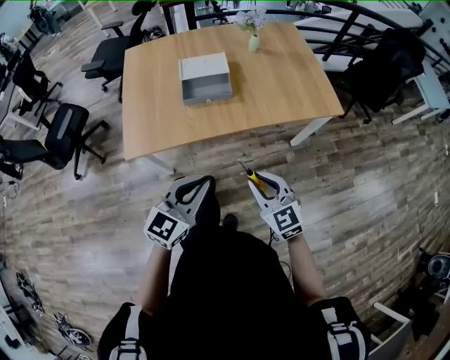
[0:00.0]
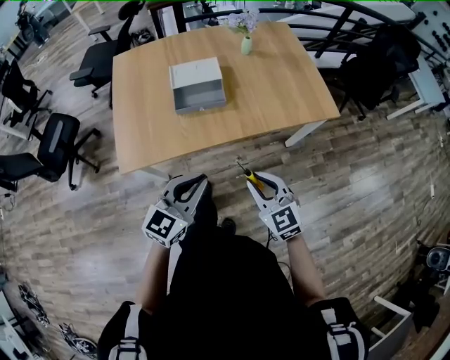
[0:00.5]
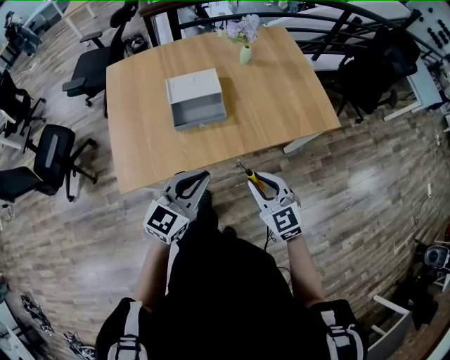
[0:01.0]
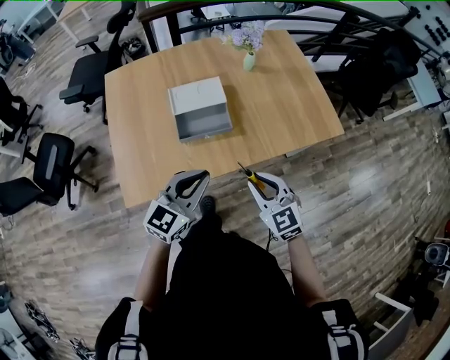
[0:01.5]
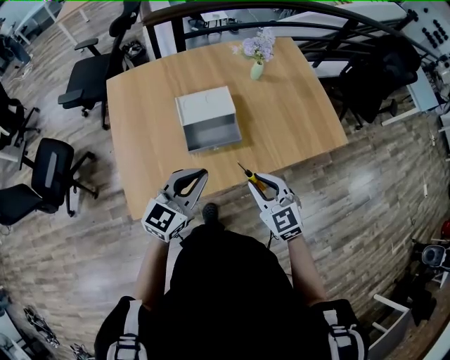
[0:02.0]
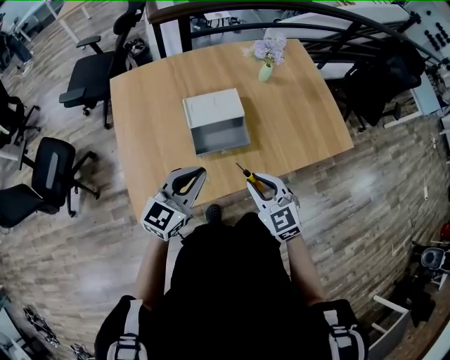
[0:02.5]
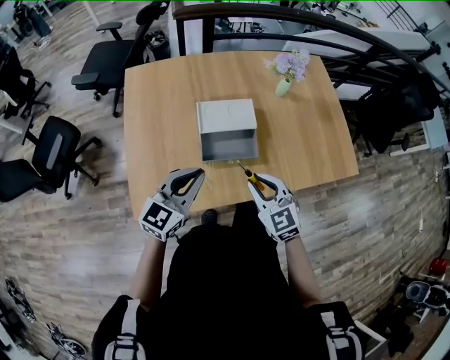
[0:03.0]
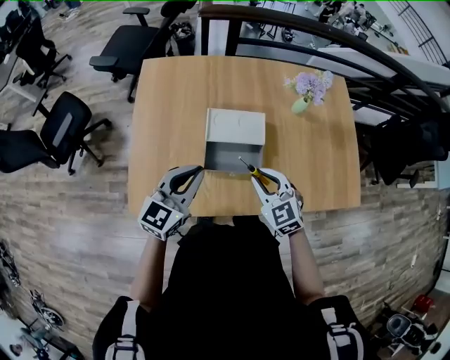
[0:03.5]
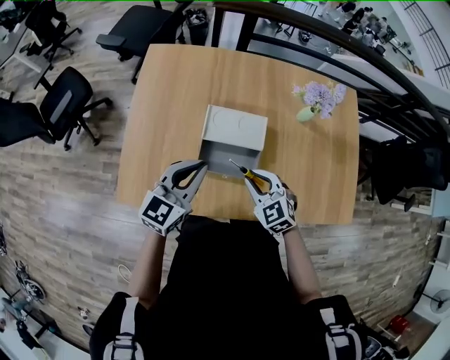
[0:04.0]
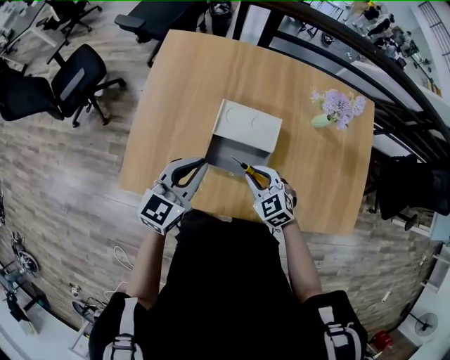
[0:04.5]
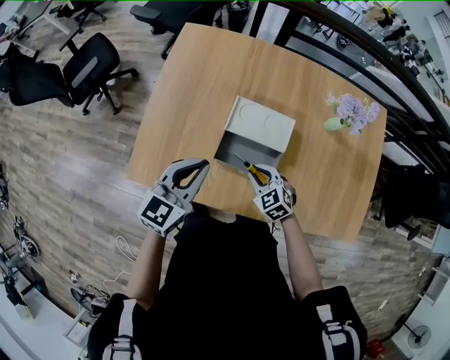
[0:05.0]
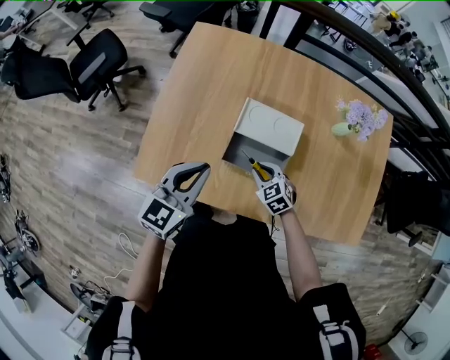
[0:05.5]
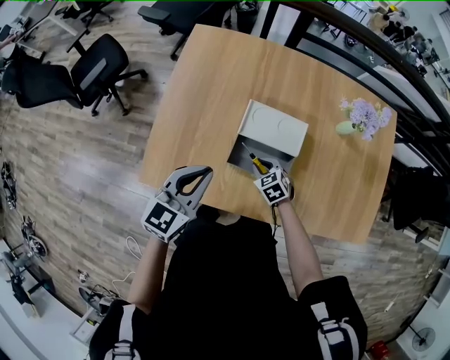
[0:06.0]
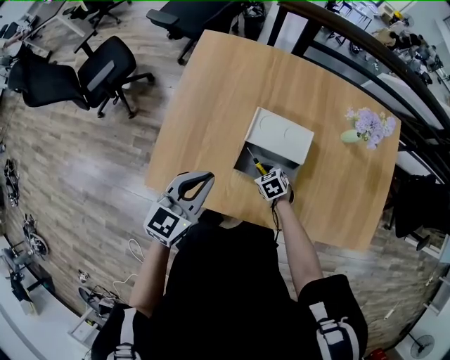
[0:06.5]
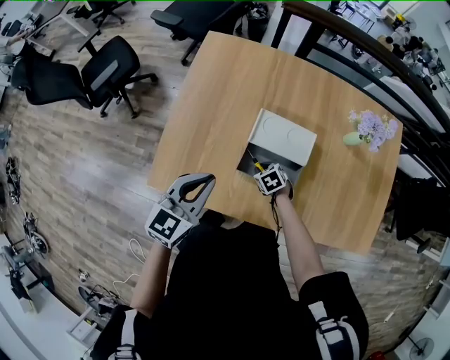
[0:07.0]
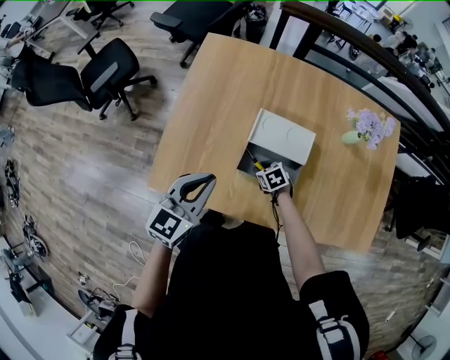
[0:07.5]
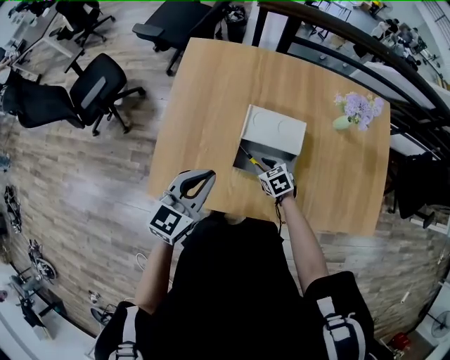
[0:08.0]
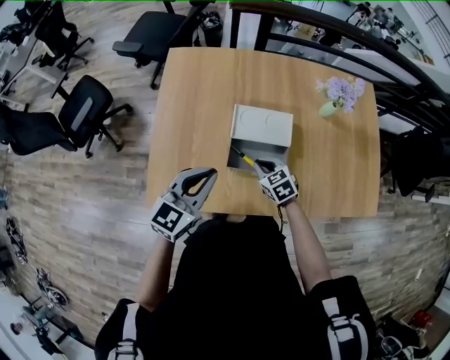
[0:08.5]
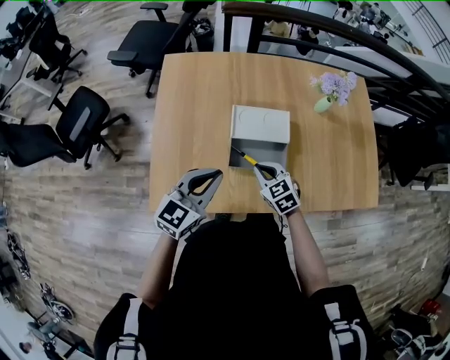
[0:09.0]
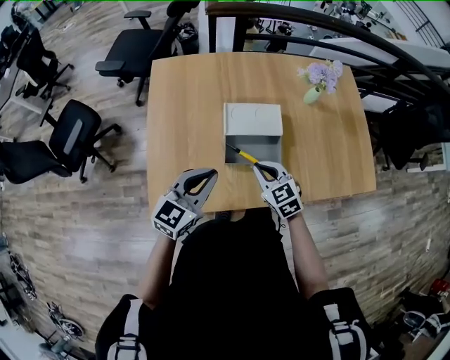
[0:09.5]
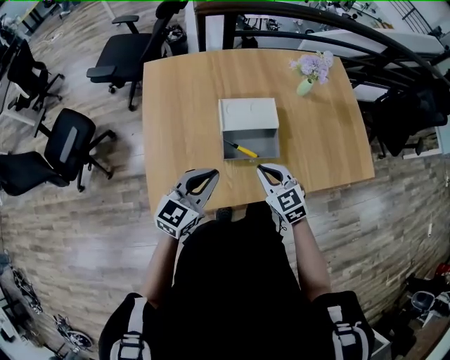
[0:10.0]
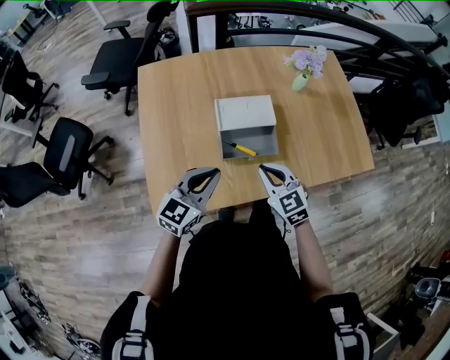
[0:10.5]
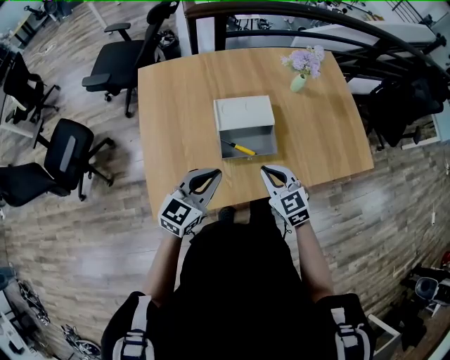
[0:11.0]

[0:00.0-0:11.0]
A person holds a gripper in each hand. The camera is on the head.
0:00.0 to 0:02.0: The grippers both shift forward and to the left by some 30 cm.
0:02.0 to 0:03.5: The left gripper moves forward and to the left, approximately 15 cm, and rotates some 20 degrees. Meanwhile the right gripper is displaced forward by some 15 cm, and changes its angle by some 20 degrees.
0:03.5 to 0:05.5: The right gripper moves downward, roughly 15 cm, and rotates roughly 20 degrees.
0:05.5 to 0:07.5: The right gripper is displaced downward by approximately 10 cm, and turns by about 30 degrees.
0:07.5 to 0:09.0: The left gripper turns by about 20 degrees; the right gripper heads upward, covering some 15 cm, rotates approximately 30 degrees, and closes up.
0:09.0 to 0:11.0: The right gripper shifts roughly 10 cm upward and backward.

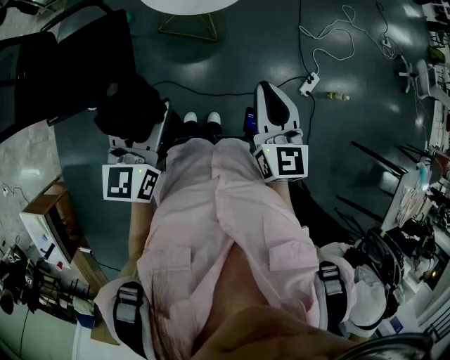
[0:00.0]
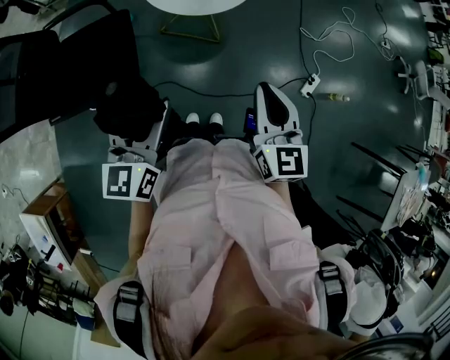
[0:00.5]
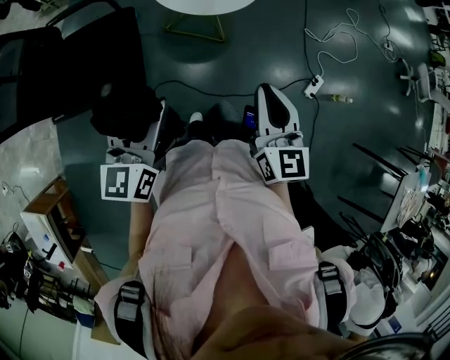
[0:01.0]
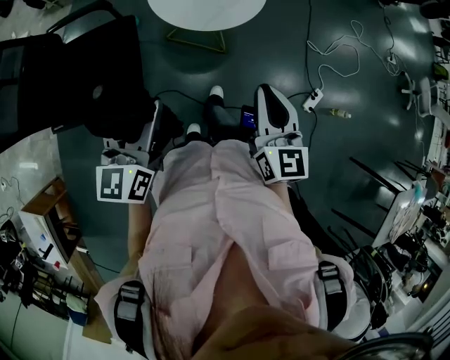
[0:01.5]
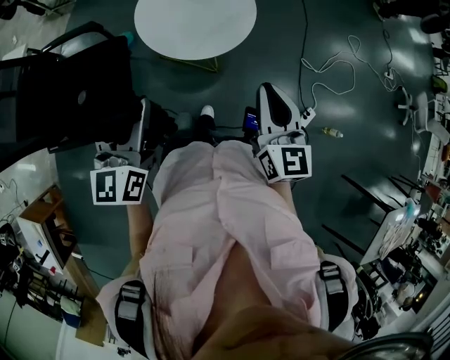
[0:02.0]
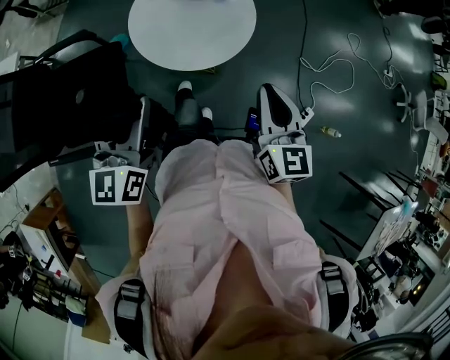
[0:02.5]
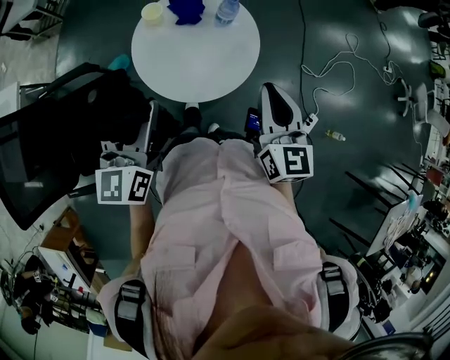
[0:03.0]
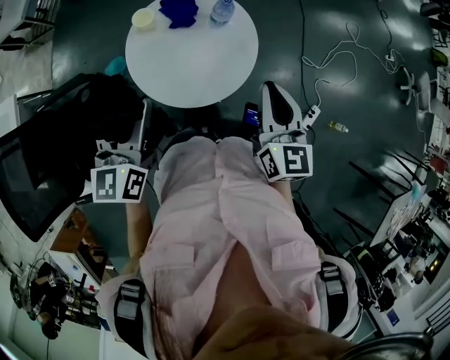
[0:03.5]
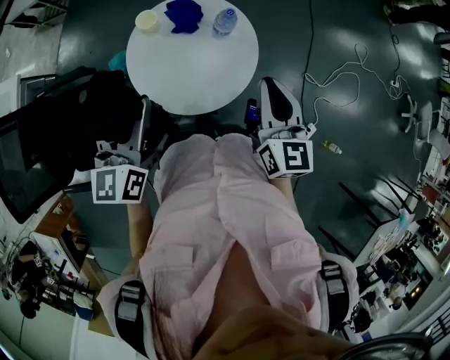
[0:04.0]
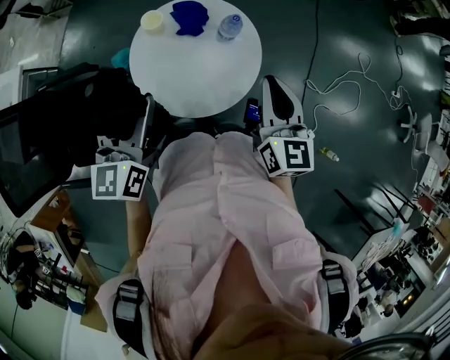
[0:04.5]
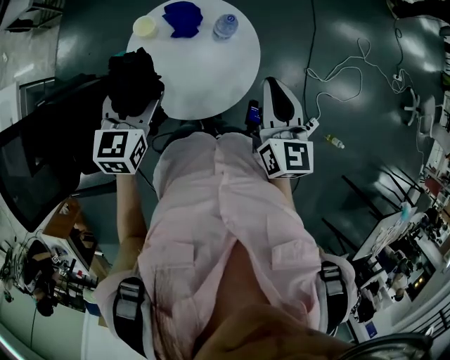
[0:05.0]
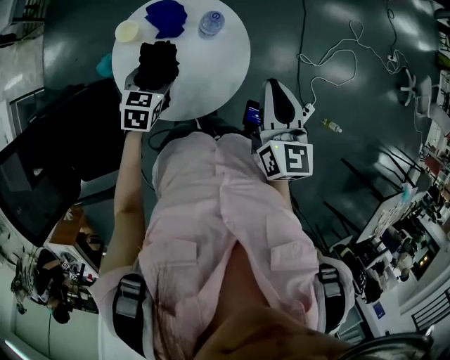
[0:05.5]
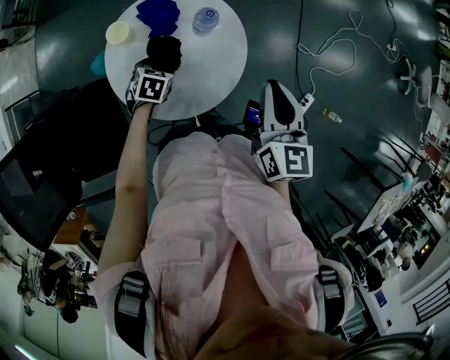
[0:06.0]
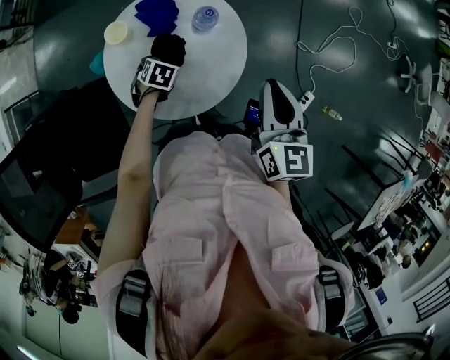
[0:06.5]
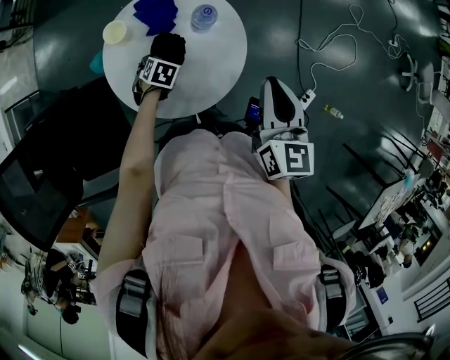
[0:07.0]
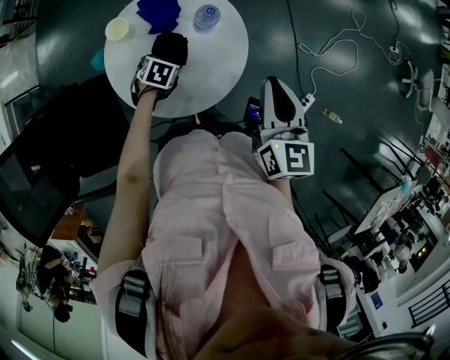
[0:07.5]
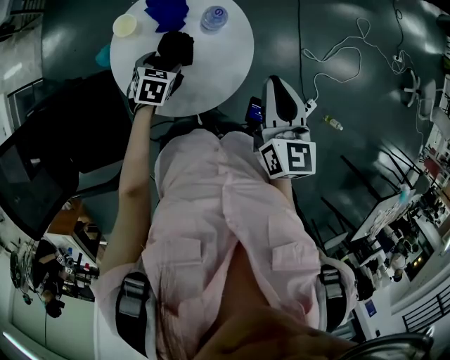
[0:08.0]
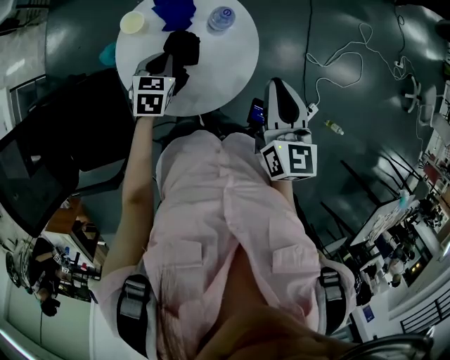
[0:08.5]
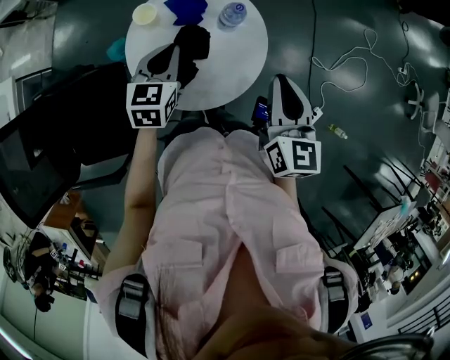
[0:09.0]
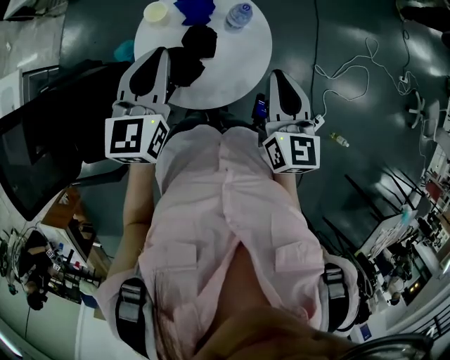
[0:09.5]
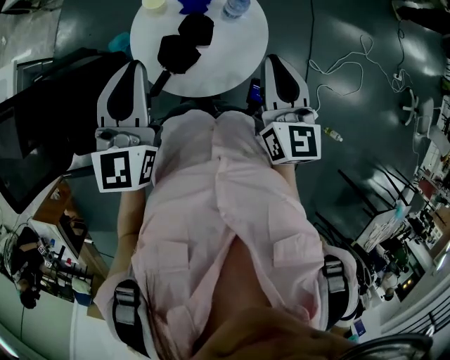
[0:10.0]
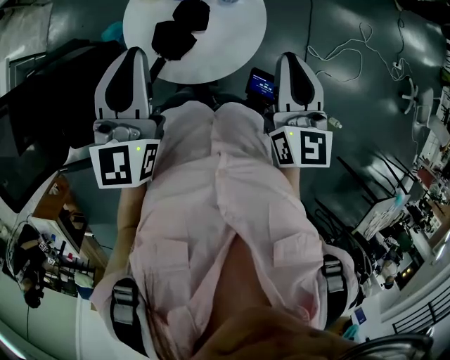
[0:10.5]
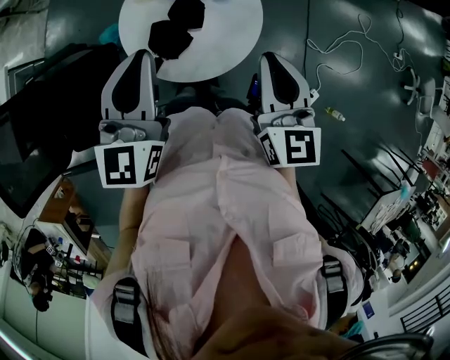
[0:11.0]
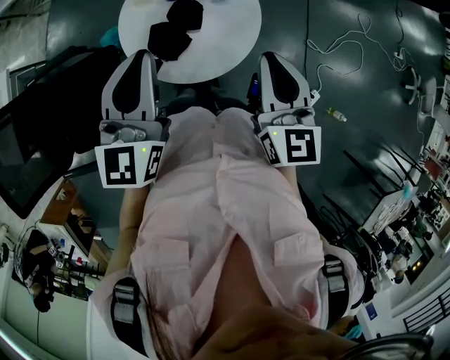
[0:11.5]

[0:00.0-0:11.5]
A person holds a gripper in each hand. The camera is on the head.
0:00.0 to 0:02.0: The grippers both shift forward by roughly 20 cm.
0:02.0 to 0:04.0: The two grippers go approximately 25 cm forward.
0:04.0 to 0:06.0: The left gripper travels downward by approximately 35 cm, and tilts its fingers roughly 50 degrees downward. Meanwhile the right gripper moves roughly 5 cm.
0:06.0 to 0:07.5: The grippers move only a little.
0:07.5 to 0:09.5: The left gripper shifts approximately 35 cm upward, tips its fingers upward by about 50 degrees, and closes its fingers; the right gripper moves about 5 cm.
0:09.5 to 0:11.5: The right gripper moves backward, approximately 5 cm; the left gripper heads backward and upward, covering approximately 10 cm.

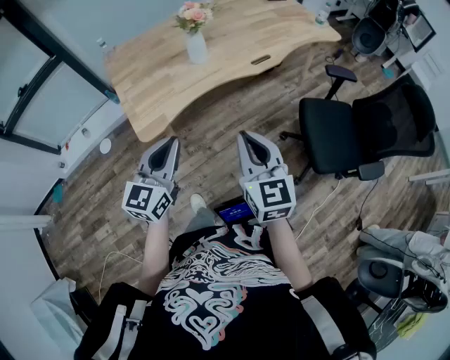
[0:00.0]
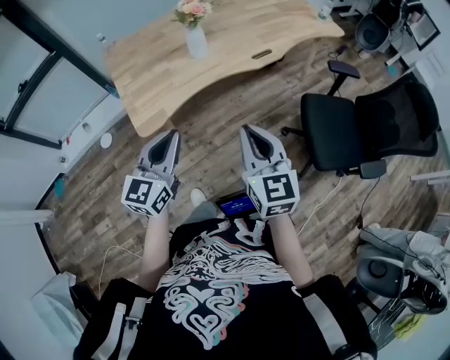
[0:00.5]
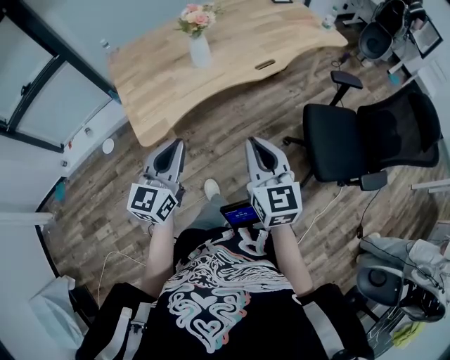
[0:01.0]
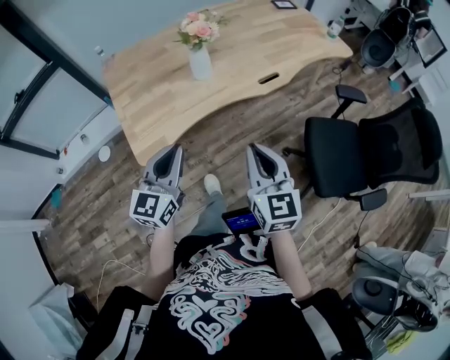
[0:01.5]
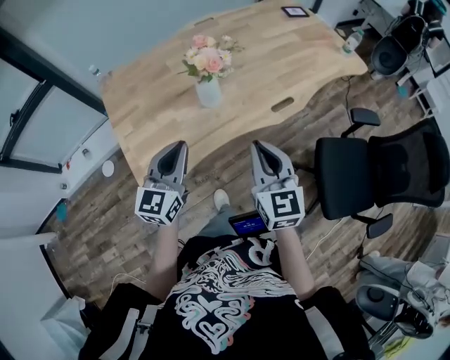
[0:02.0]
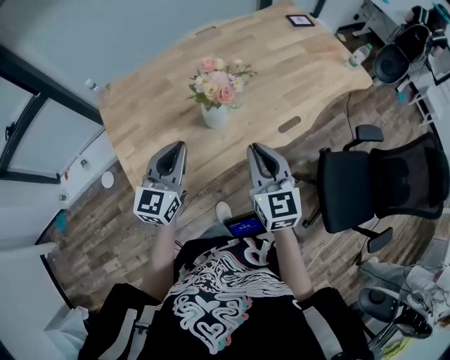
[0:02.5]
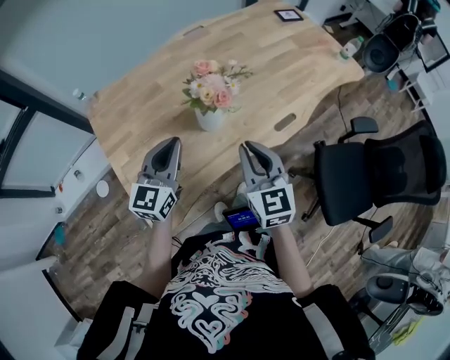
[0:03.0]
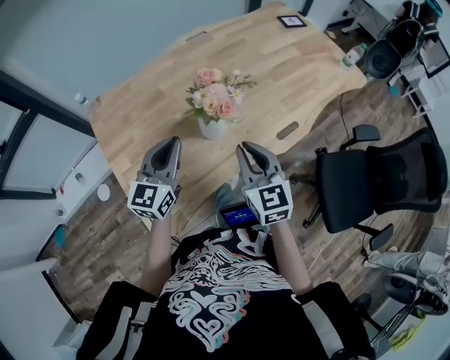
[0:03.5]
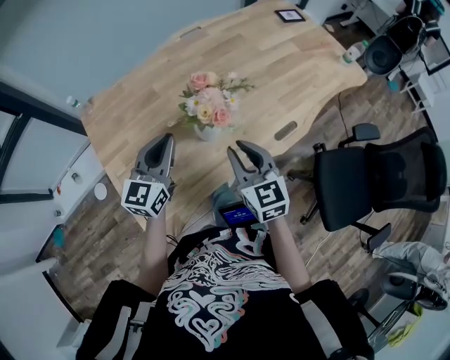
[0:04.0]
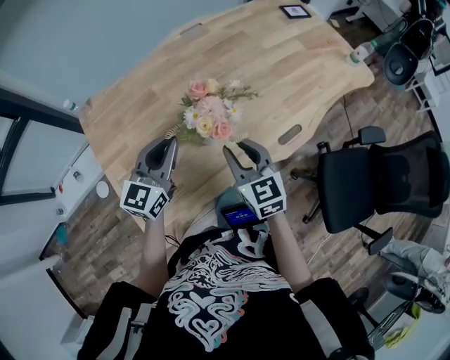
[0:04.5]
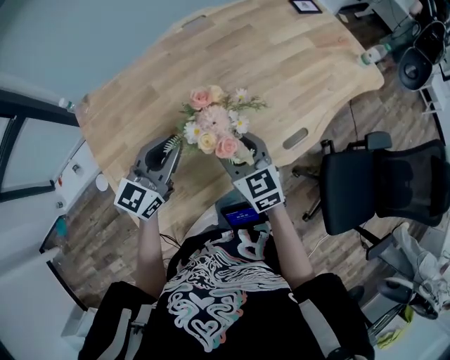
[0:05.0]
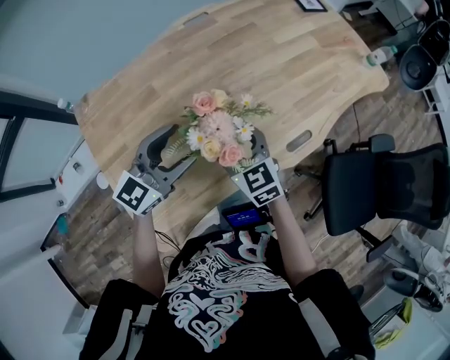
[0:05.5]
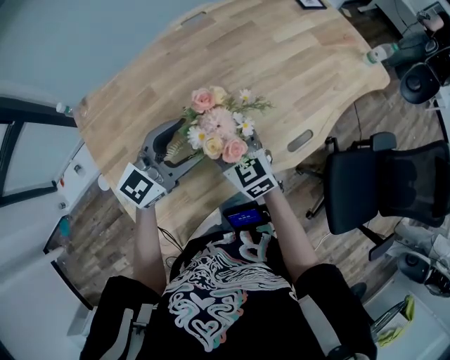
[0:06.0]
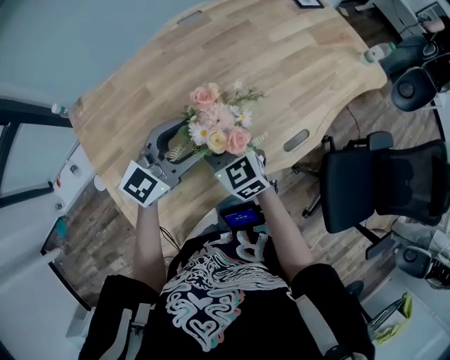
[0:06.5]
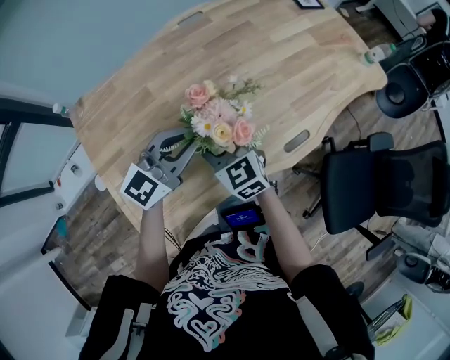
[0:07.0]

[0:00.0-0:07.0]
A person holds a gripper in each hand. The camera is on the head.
0:00.0 to 0:02.0: Both grippers move forward, about 25 cm.
0:02.0 to 0:03.5: The right gripper shifts about 15 cm forward and to the left; the left gripper is displaced forward by about 15 cm.
0:03.5 to 0:05.0: The left gripper moves forward, roughly 10 cm. Meanwhile the right gripper goes about 15 cm forward and downward, and opens.
0:05.0 to 0:07.0: The left gripper is displaced to the right by approximately 5 cm, and opens, then closes again; the right gripper is displaced to the left by some 5 cm, and opens up.
